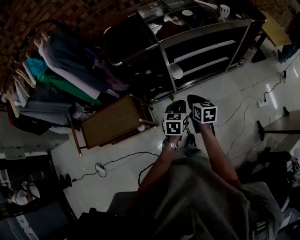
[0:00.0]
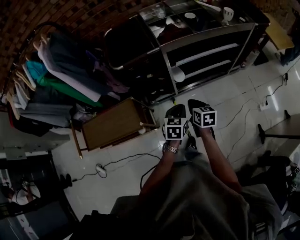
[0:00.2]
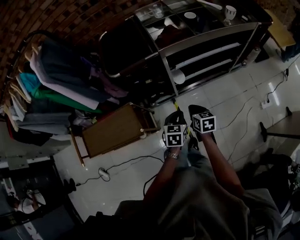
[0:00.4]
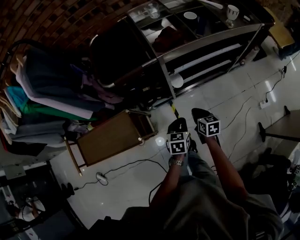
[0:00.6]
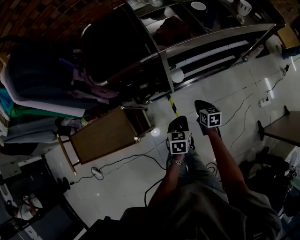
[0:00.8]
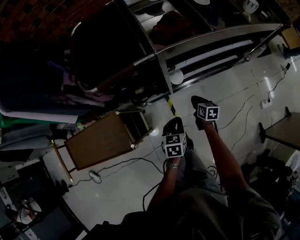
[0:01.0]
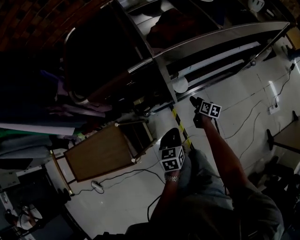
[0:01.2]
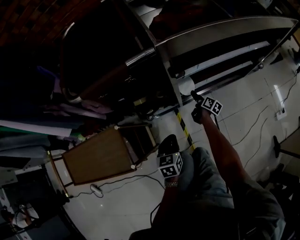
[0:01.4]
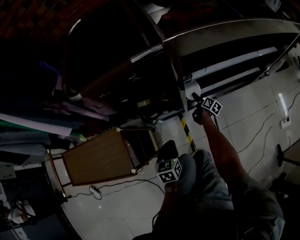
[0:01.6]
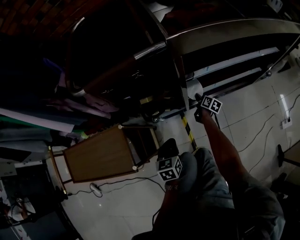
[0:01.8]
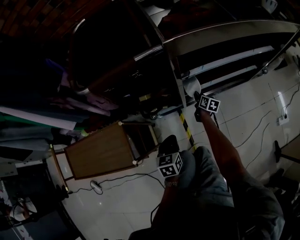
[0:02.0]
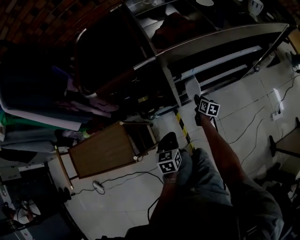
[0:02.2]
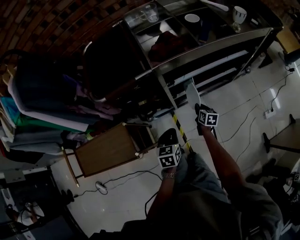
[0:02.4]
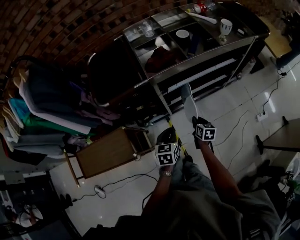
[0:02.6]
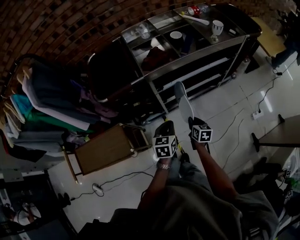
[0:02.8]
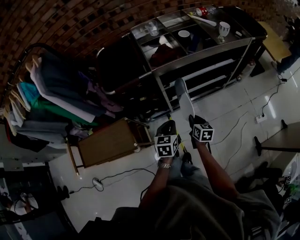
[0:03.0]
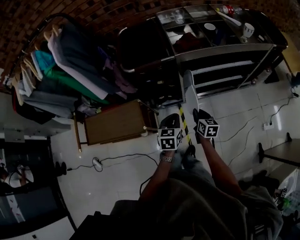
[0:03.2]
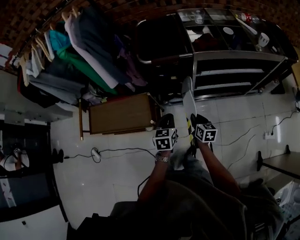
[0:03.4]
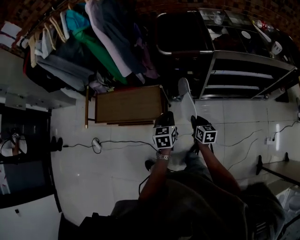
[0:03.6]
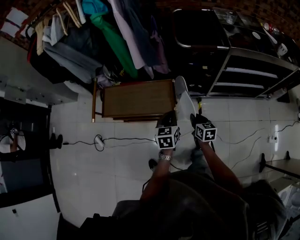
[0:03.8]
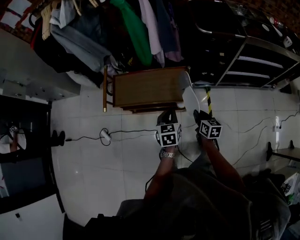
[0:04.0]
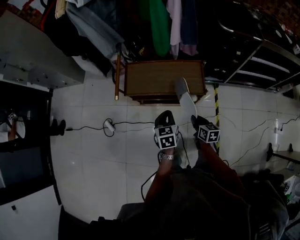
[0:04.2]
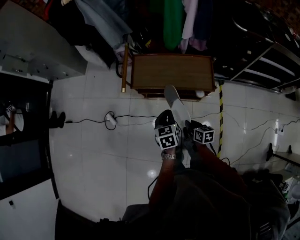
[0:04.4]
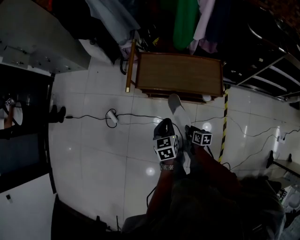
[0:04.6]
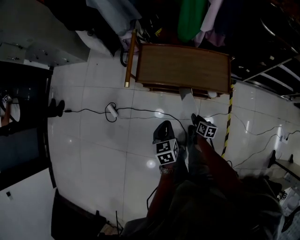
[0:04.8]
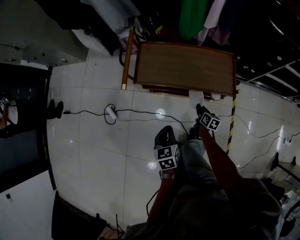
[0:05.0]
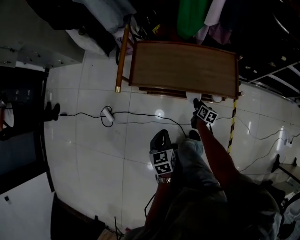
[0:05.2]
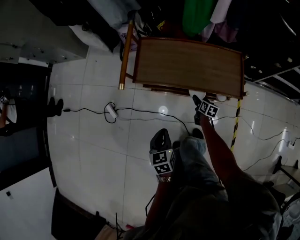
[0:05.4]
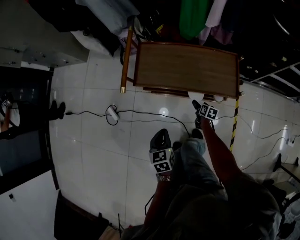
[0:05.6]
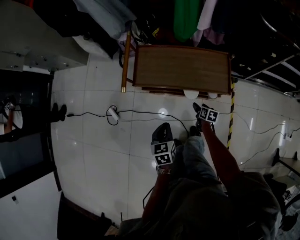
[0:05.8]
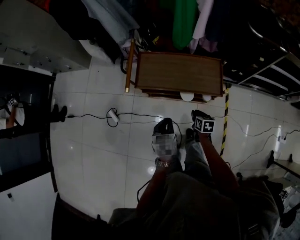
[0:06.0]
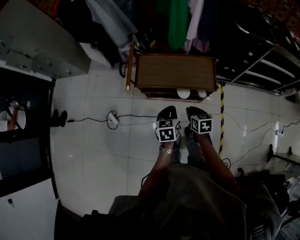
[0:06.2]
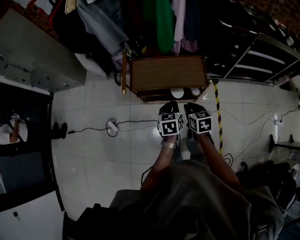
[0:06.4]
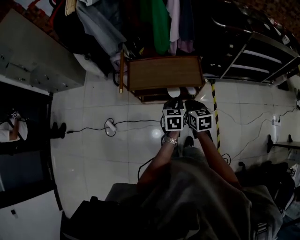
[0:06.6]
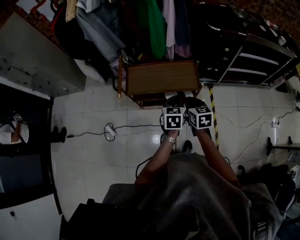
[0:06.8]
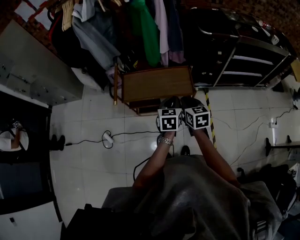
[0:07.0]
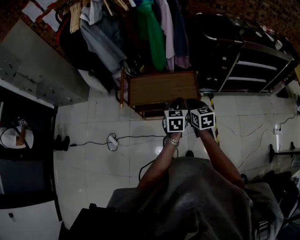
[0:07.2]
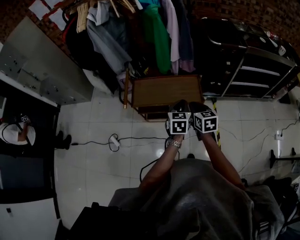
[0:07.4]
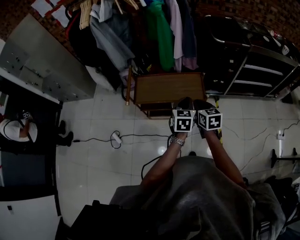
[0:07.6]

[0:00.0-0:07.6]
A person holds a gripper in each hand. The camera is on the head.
0:00.0 to 0:01.6: The right gripper heads downward and forward, covering approximately 60 cm, rolls clockwise, seen from behind, by roughly 40 degrees, and opens its fingers; the left gripper goes some 35 cm downward, and turns by roughly 20 degrees.
0:01.6 to 0:03.0: The right gripper travels upward and backward by about 50 cm, rotates approximately 40 degrees, and closes its fingers; the left gripper travels upward by roughly 30 cm.
0:03.0 to 0:04.6: The two grippers travel together, about 80 cm. The right gripper swivels approximately 40 degrees. Meanwhile the left gripper changes its angle by approximately 40 degrees.
0:04.6 to 0:06.0: The left gripper moves about 15 cm downward and comes back. Meanwhile the right gripper goes approximately 10 cm forward and to the right, goes downward and returns, roughly 20 cm each way, and opens, then closes again.
0:06.0 to 0:07.6: The left gripper is displaced upward and to the right by approximately 25 cm, and turns by roughly 20 degrees, while the right gripper heads upward, covering roughly 30 cm, and changes its angle by roughly 20 degrees.

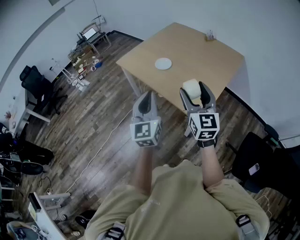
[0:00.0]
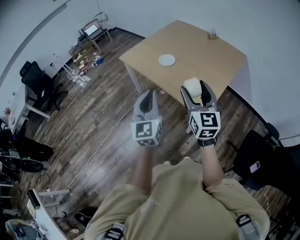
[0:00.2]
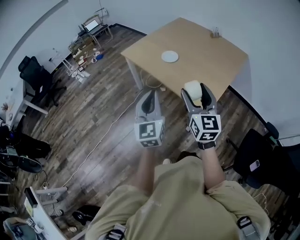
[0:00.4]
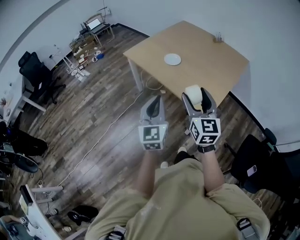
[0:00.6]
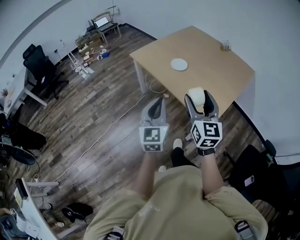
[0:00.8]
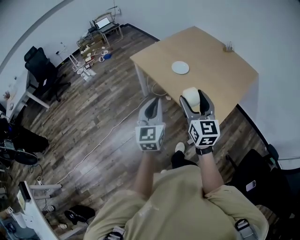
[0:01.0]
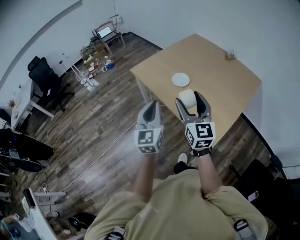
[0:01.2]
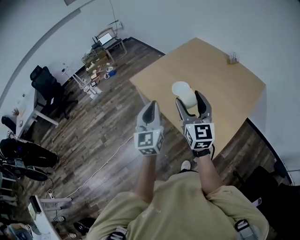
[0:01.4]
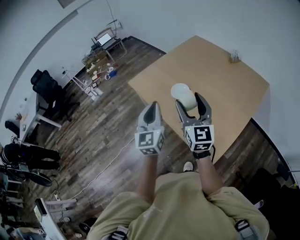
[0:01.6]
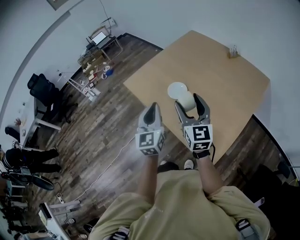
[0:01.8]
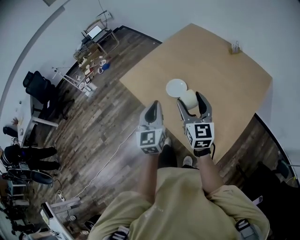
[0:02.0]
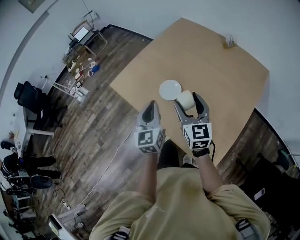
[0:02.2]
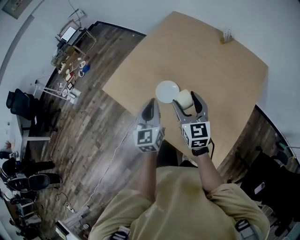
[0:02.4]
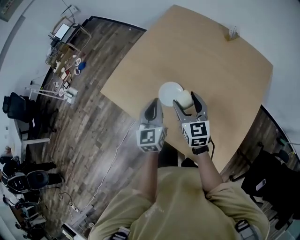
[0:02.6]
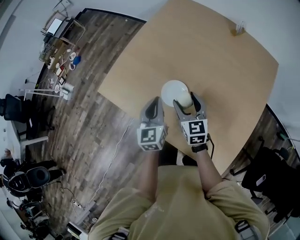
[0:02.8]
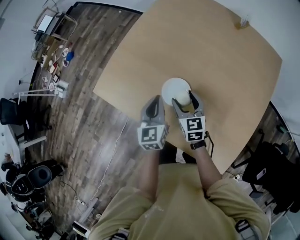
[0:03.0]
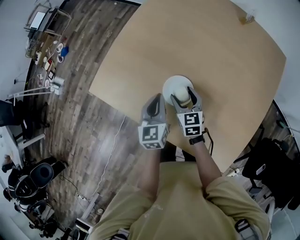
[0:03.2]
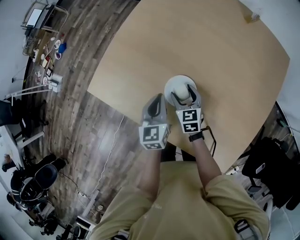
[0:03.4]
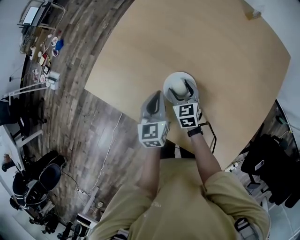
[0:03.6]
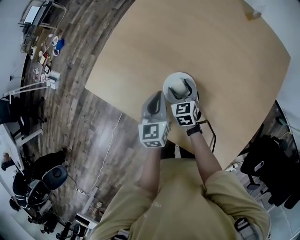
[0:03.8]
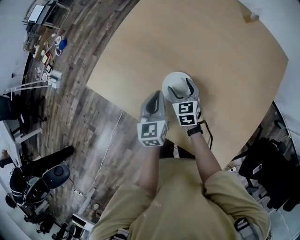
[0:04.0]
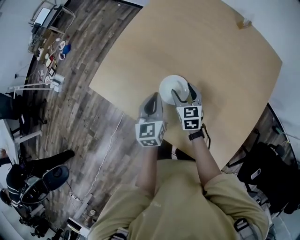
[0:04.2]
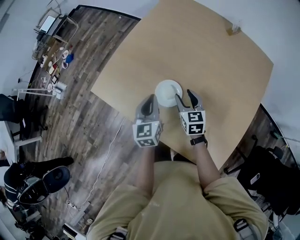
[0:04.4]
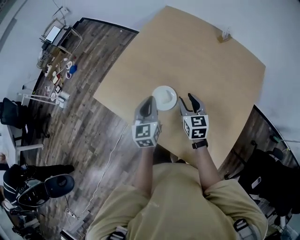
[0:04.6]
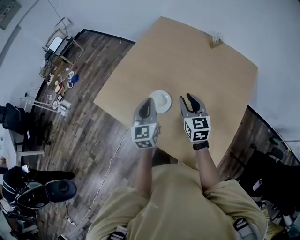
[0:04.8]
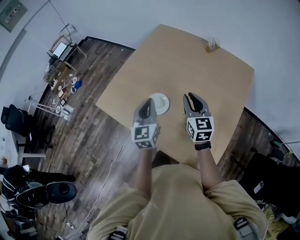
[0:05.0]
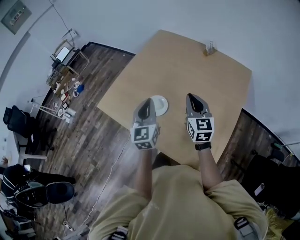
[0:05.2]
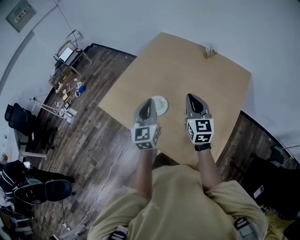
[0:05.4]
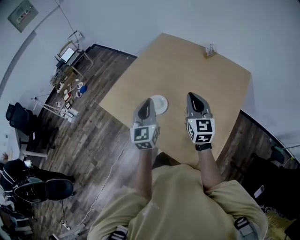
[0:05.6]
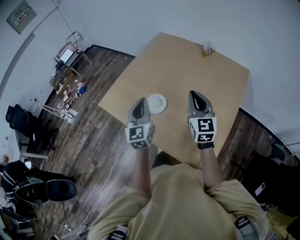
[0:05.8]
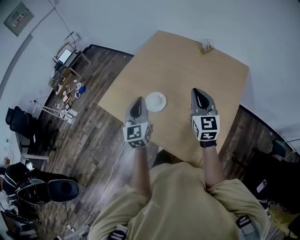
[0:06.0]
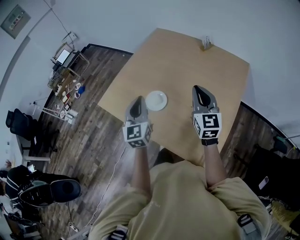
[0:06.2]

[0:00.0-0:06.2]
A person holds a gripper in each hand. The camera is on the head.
0:00.0 to 0:01.6: Both grippers travel together forward, some 25 cm.
0:01.6 to 0:03.2: The left gripper heads forward and downward, covering about 50 cm, and changes its angle by roughly 30 degrees. The right gripper heads downward and forward, covering roughly 50 cm, and points its fingers roughly 40 degrees further downward.
0:03.2 to 0:04.6: The right gripper goes about 20 cm upward and to the right, and closes. Meanwhile the left gripper is displaced upward and backward by about 15 cm.
0:04.6 to 0:06.2: The right gripper goes roughly 25 cm upward, to the right and backward, changes its angle by about 30 degrees, and closes up, while the left gripper goes about 15 cm upward, backward and to the right.

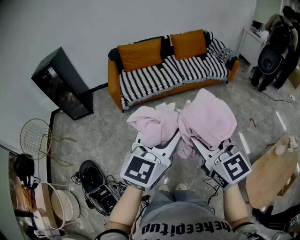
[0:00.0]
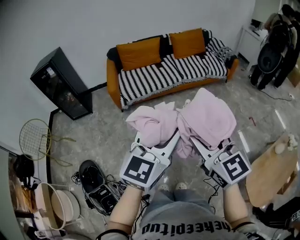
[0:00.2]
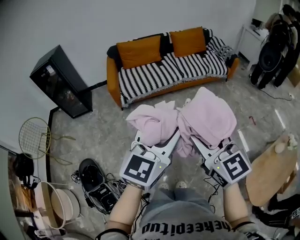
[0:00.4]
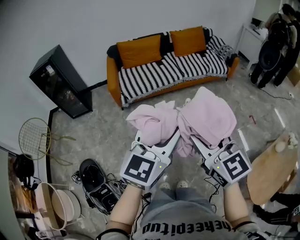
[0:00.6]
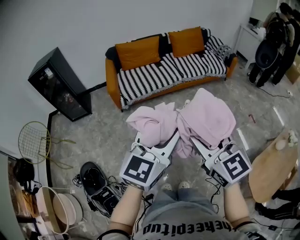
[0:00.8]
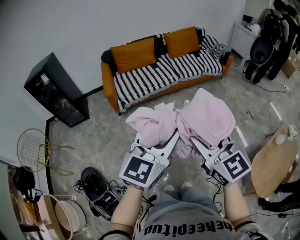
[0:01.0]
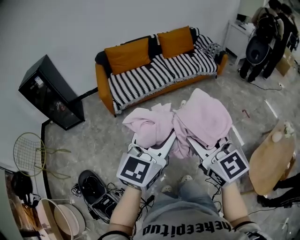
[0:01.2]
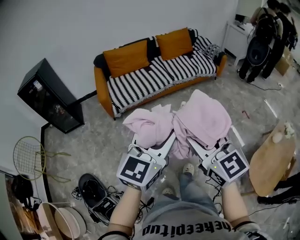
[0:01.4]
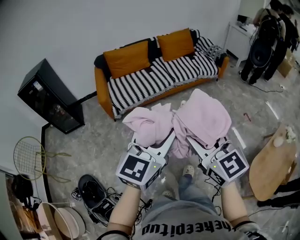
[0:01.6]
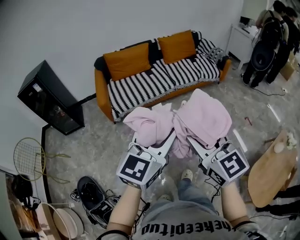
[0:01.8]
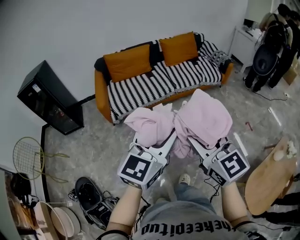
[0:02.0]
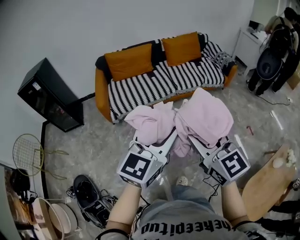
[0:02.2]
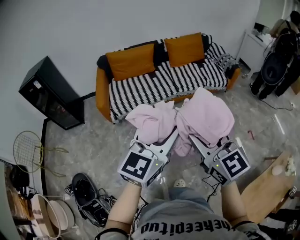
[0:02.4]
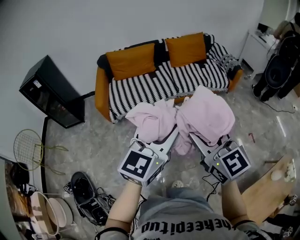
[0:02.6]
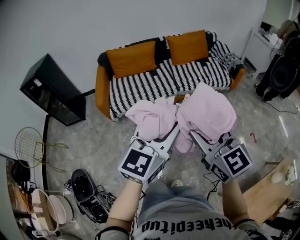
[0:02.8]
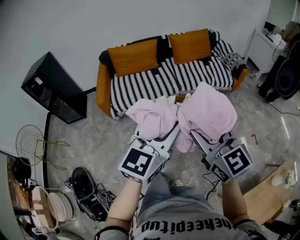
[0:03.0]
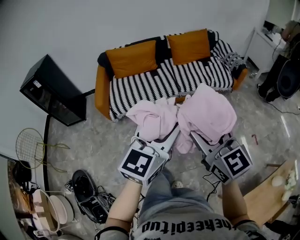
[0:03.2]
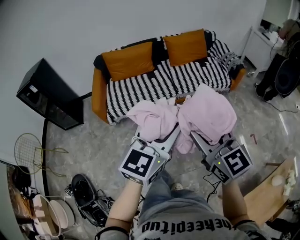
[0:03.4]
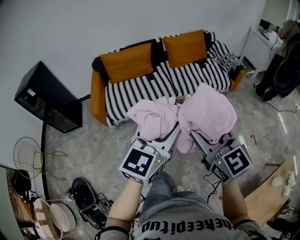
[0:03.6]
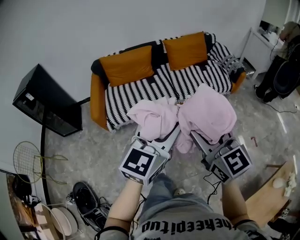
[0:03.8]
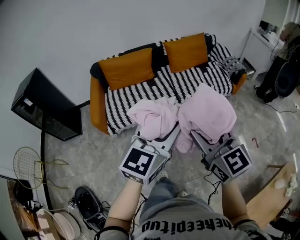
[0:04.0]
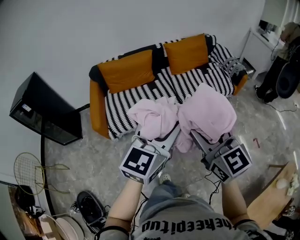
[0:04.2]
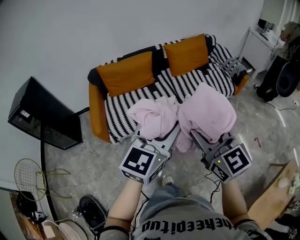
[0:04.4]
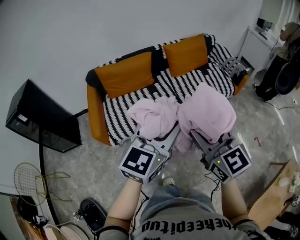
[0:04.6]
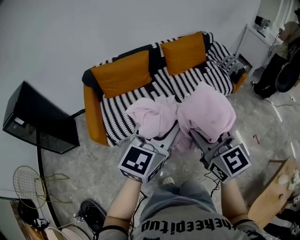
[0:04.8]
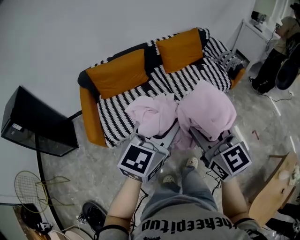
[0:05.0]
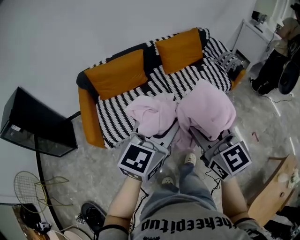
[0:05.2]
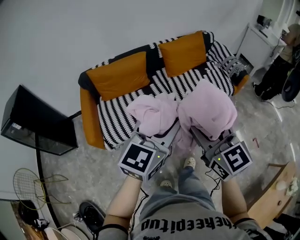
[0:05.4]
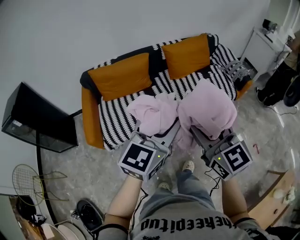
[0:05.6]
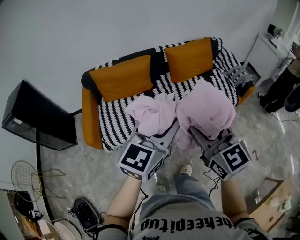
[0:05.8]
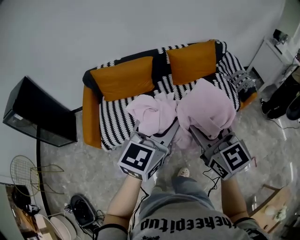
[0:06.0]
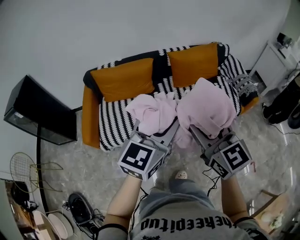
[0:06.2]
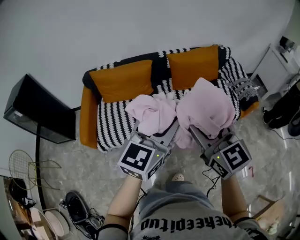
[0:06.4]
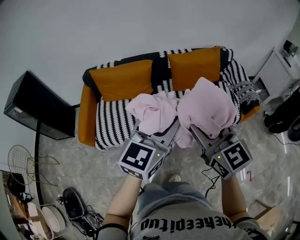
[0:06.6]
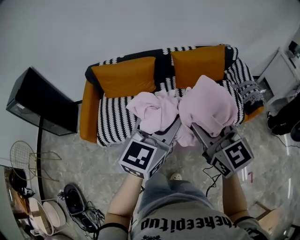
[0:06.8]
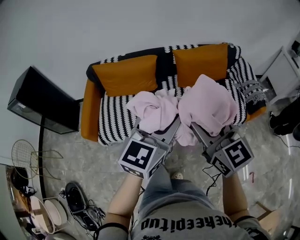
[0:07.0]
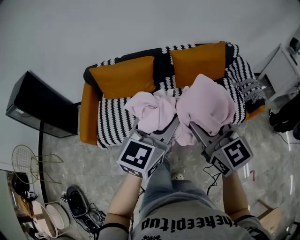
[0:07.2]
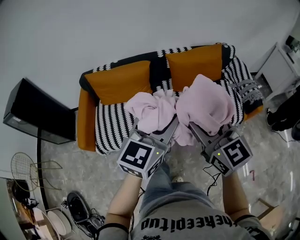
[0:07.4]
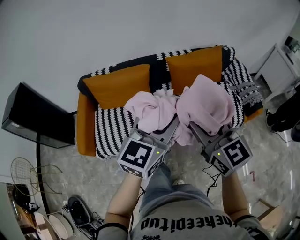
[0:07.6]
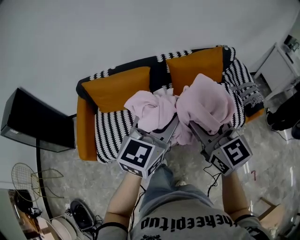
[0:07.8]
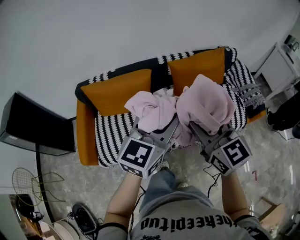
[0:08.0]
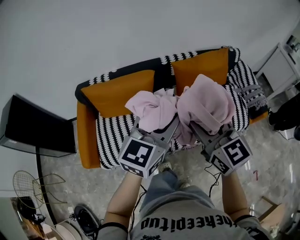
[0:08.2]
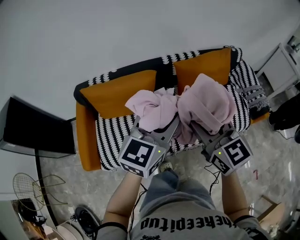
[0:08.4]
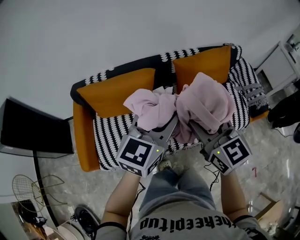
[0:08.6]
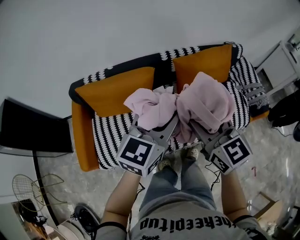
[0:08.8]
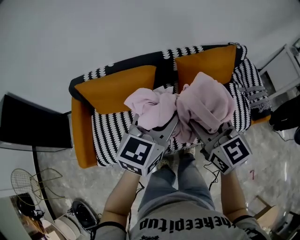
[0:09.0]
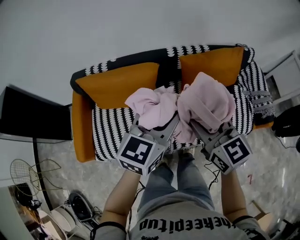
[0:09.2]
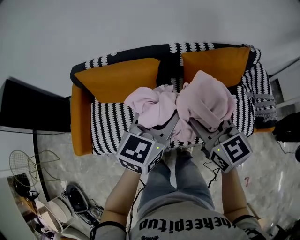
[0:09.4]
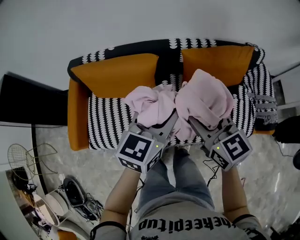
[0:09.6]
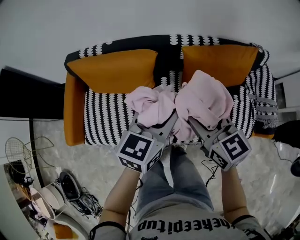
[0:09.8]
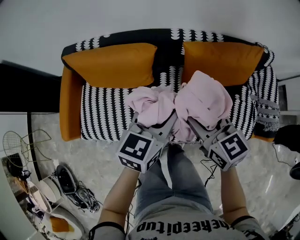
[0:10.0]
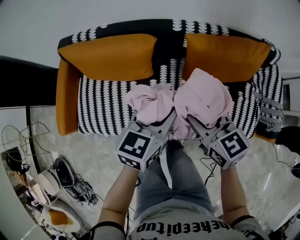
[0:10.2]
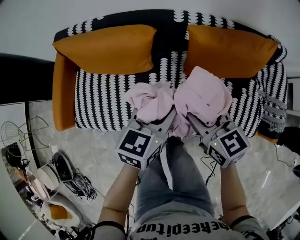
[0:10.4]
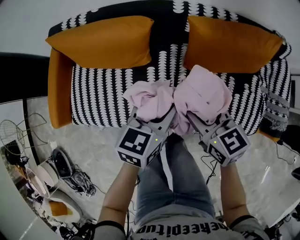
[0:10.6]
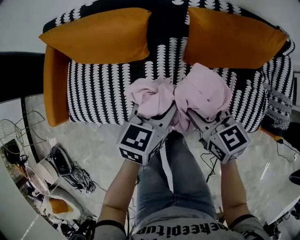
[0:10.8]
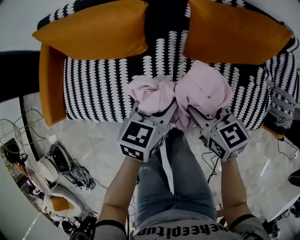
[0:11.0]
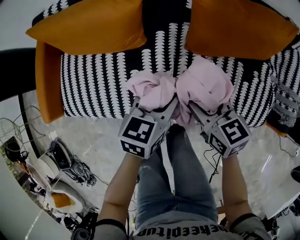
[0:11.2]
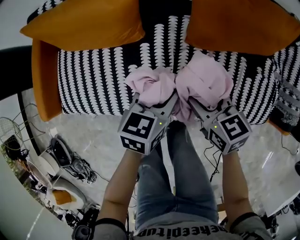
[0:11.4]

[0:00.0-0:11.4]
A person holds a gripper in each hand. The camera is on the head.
0:00.0 to 0:01.4: The left gripper shifts by approximately 5 cm.
0:01.4 to 0:02.8: The two grippers go roughly 30 cm forward and to the right.
0:02.8 to 0:04.2: Both grippers move forward, some 20 cm.
0:04.2 to 0:05.6: The grippers both shift forward by roughly 15 cm.
0:05.6 to 0:07.2: Both grippers move forward and to the right, about 20 cm.
0:07.2 to 0:08.6: Both grippers travel together forward and to the left, roughly 25 cm.
0:08.6 to 0:10.0: The left gripper heads downward and forward, covering roughly 20 cm, and turns by approximately 20 degrees; the right gripper shifts some 20 cm downward, forward and to the right, and swivels about 20 degrees.
0:10.0 to 0:11.4: The two grippers go approximately 25 cm downward.
